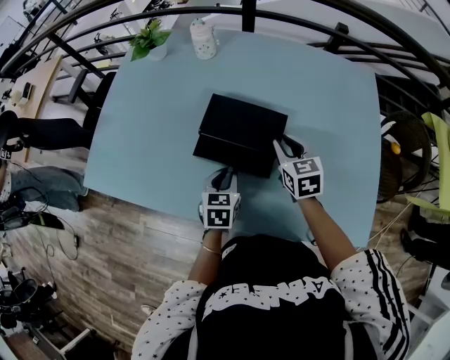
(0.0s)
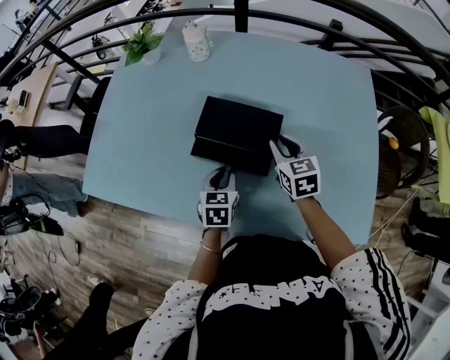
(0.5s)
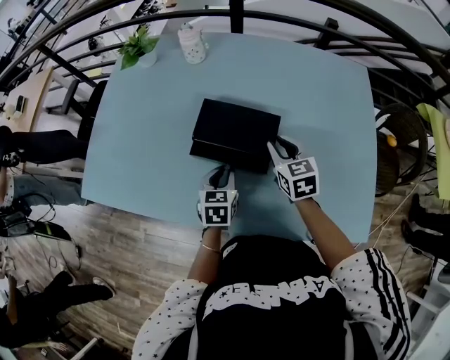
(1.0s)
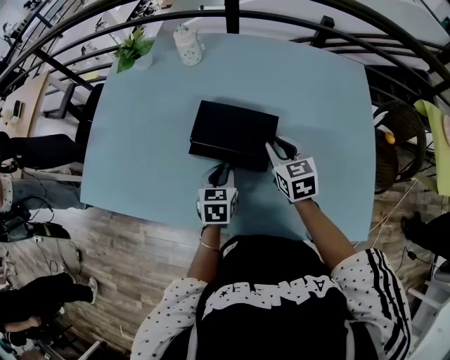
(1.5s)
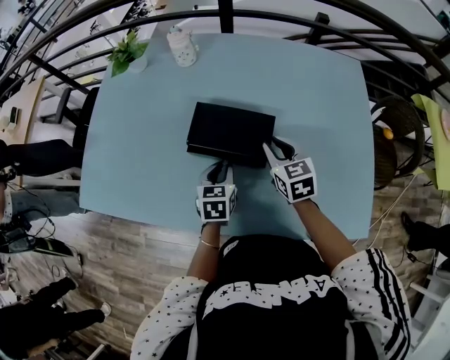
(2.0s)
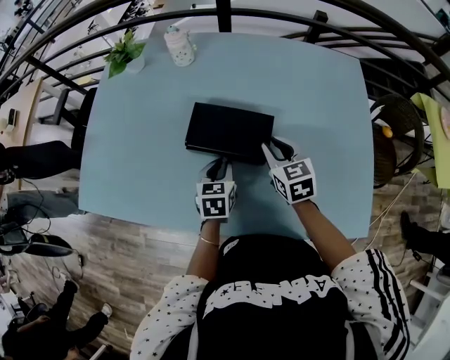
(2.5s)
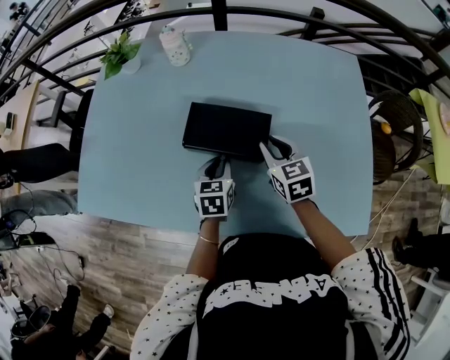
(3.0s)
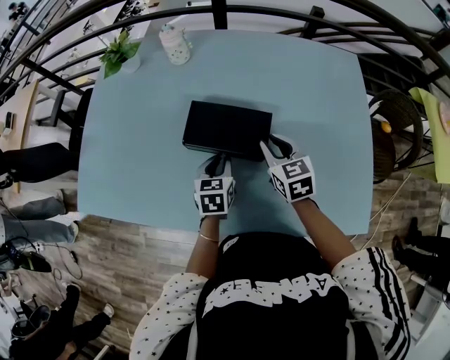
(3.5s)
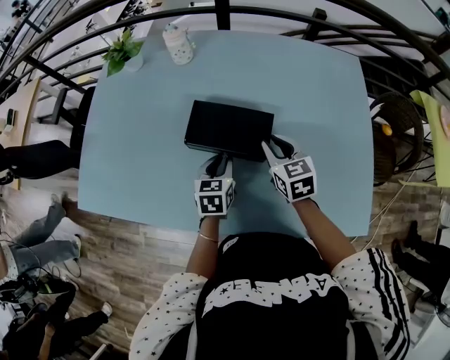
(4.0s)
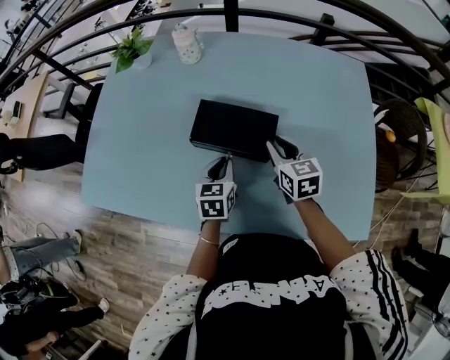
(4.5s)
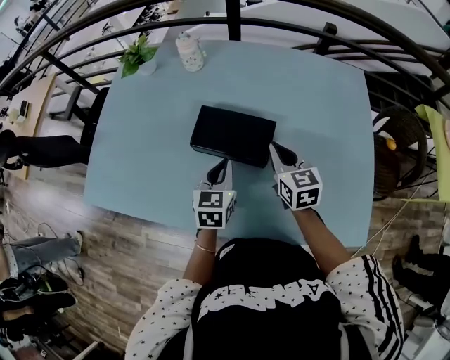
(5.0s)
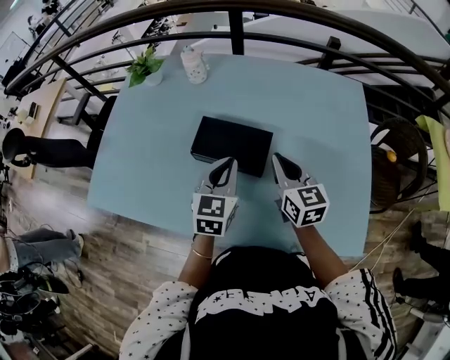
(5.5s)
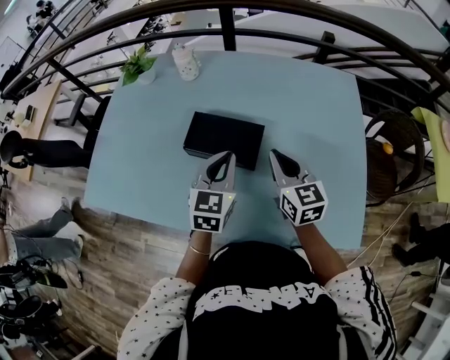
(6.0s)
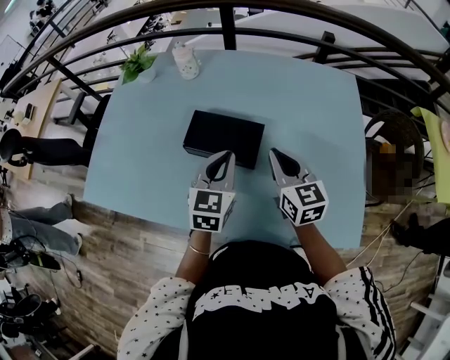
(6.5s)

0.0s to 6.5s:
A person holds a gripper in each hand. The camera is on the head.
0.0s to 2.0s: The grippers stay close to where they were, moving slightly.
2.0s to 4.5s: There are only small adjustments of the grippers.
4.5s to 6.5s: The left gripper heads upward and to the right, covering about 15 cm, and changes its angle by about 20 degrees. The right gripper is displaced upward and backward by some 10 cm.
